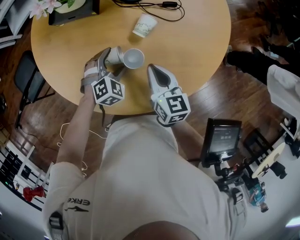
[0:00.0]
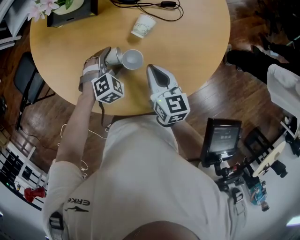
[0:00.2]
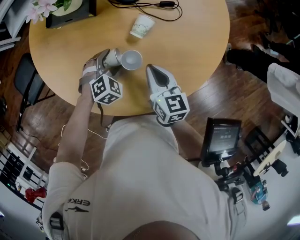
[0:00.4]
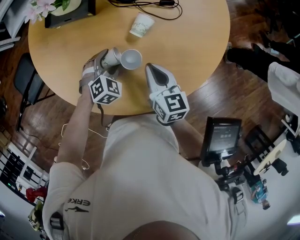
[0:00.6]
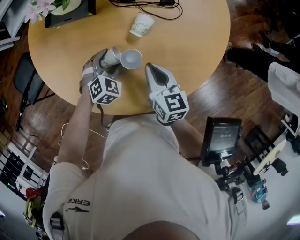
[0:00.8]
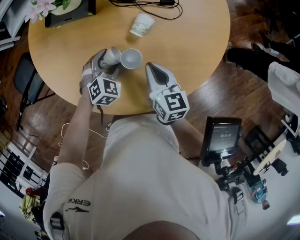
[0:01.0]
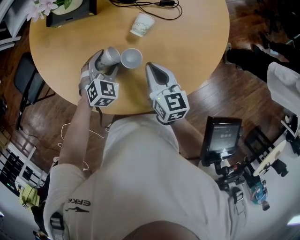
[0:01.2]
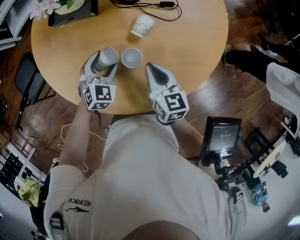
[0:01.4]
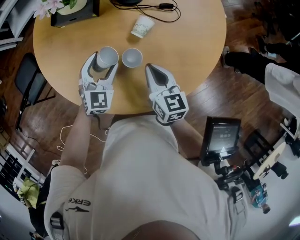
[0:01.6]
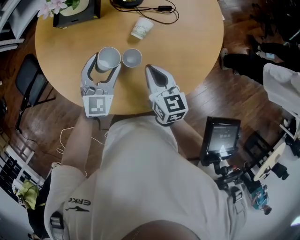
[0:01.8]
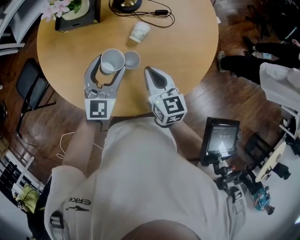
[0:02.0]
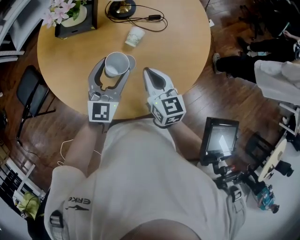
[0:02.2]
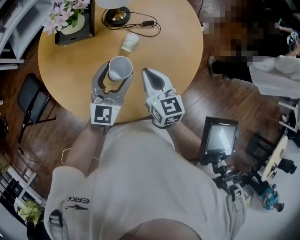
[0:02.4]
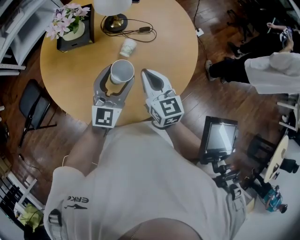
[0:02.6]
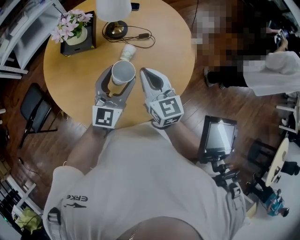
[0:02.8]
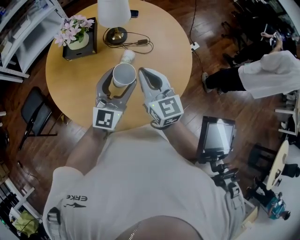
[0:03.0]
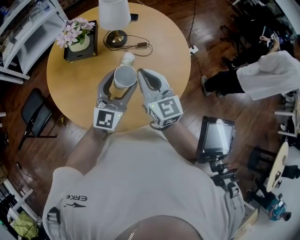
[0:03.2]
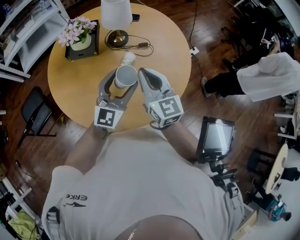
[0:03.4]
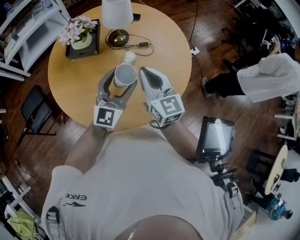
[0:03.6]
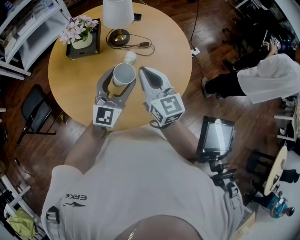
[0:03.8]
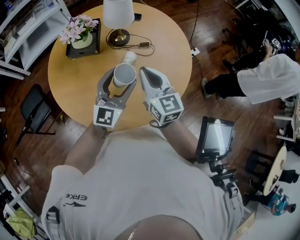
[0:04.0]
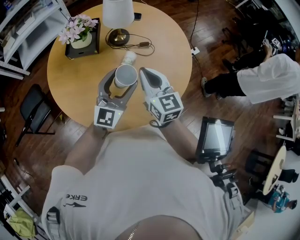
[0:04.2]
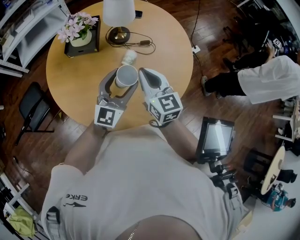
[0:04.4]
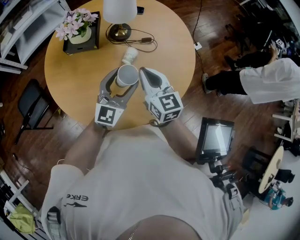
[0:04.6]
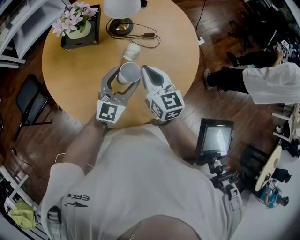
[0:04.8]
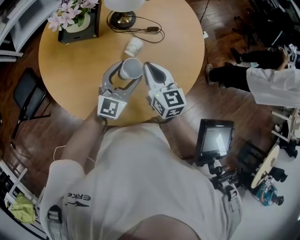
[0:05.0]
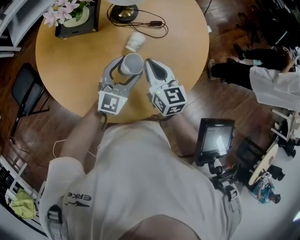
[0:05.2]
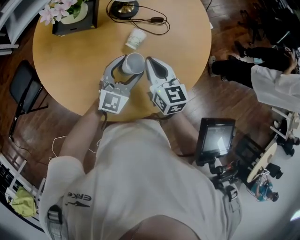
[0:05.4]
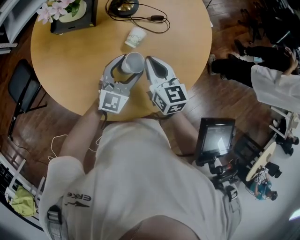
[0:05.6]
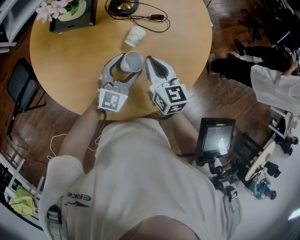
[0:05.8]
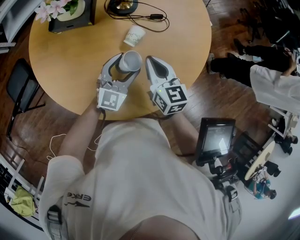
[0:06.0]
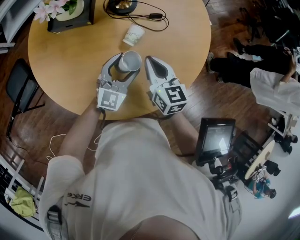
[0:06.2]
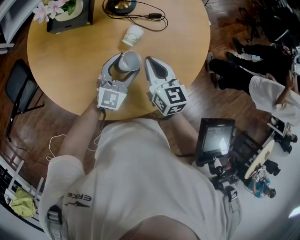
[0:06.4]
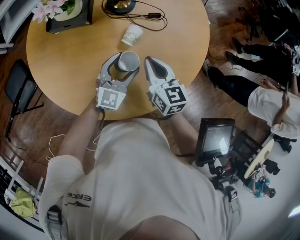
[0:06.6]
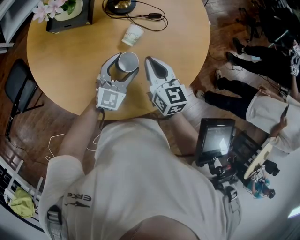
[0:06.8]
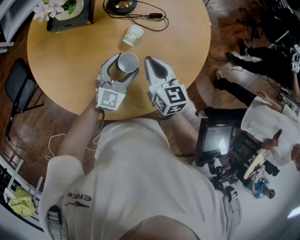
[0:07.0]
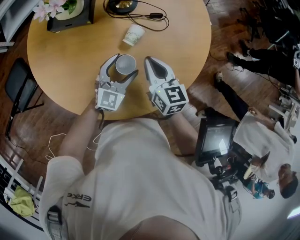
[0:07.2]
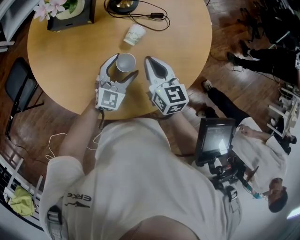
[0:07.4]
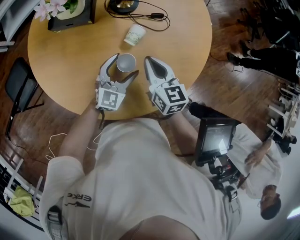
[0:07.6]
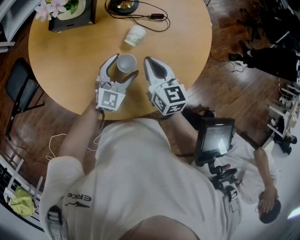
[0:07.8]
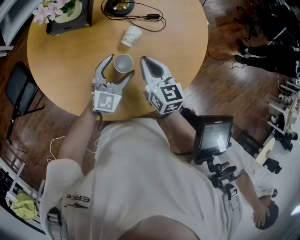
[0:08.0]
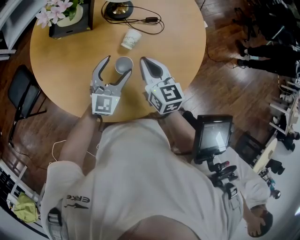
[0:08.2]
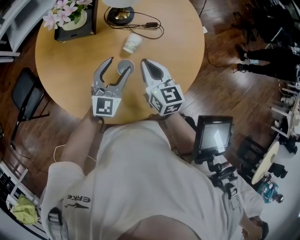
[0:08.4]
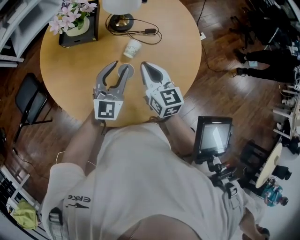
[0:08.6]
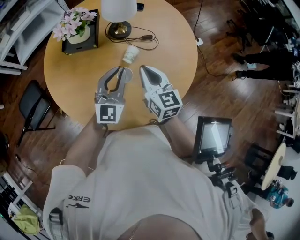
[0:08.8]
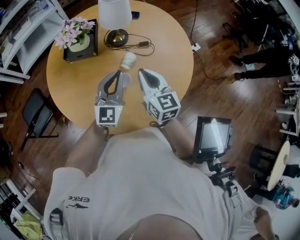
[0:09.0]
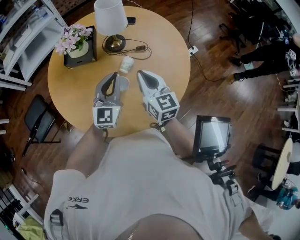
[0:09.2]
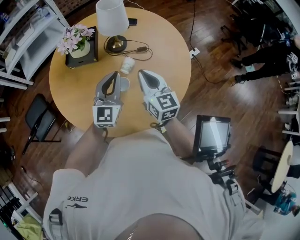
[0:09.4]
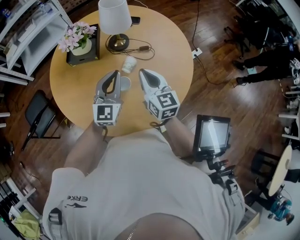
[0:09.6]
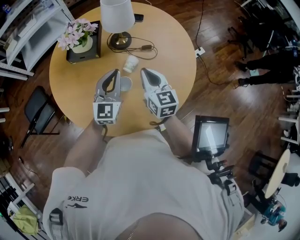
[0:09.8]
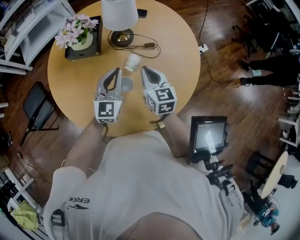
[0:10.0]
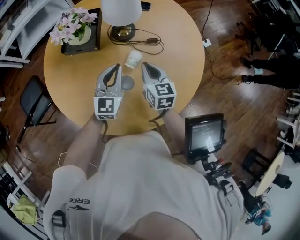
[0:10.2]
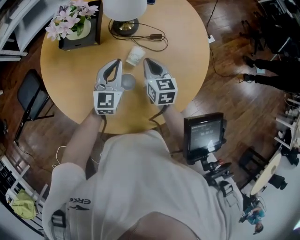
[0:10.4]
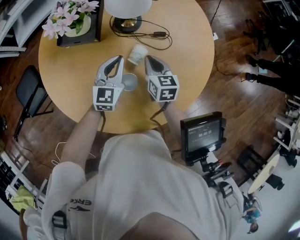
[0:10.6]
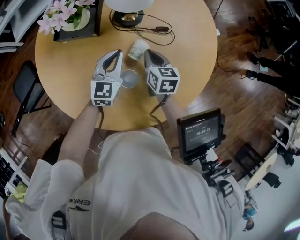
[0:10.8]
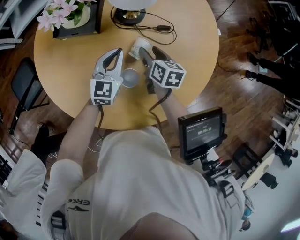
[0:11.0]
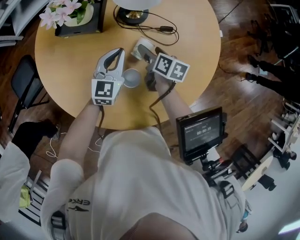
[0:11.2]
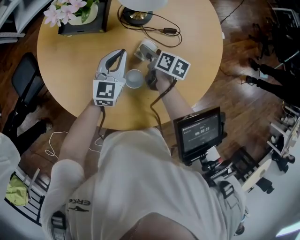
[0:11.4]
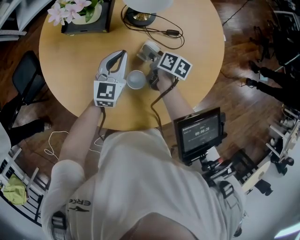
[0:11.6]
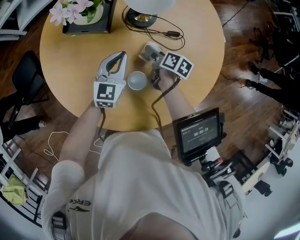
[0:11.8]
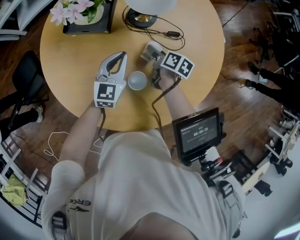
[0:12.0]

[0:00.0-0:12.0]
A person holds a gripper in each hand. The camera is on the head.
0:00.0 to 0:01.6: The left gripper travels upward by roughly 10 cm, and swivels some 40 degrees.
0:01.6 to 0:03.0: The left gripper moves upward and to the right, approximately 20 cm, and tilts its fingers about 30 degrees upward; the right gripper is displaced upward by approximately 20 cm, and turns by approximately 30 degrees.
0:03.0 to 0:04.4: There are only small adjustments of the grippers.
0:04.4 to 0:06.0: The two grippers go some 15 cm downward.
0:06.0 to 0:07.6: There are only small adjustments of the grippers.
0:07.6 to 0:09.0: The right gripper moves upward, about 10 cm. Meanwhile the left gripper is displaced upward by some 15 cm, turns by some 20 degrees, and closes its fingers.
0:09.0 to 0:10.4: Both grippers move downward and forward, roughly 15 cm.
0:10.4 to 0:12.0: The right gripper heads downward and forward, covering approximately 10 cm, rotates around the line of its fingers by about 40 degrees, clockwise from behind, and opens up, while the left gripper shifts by roughly 5 cm.

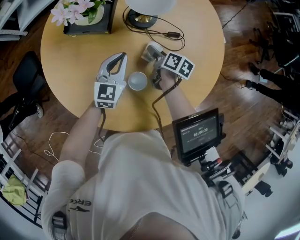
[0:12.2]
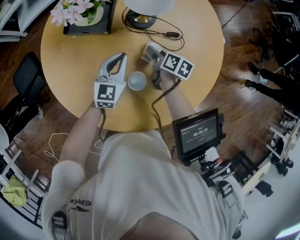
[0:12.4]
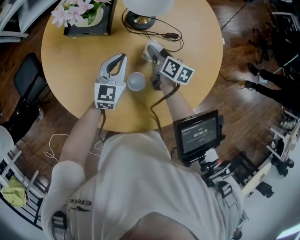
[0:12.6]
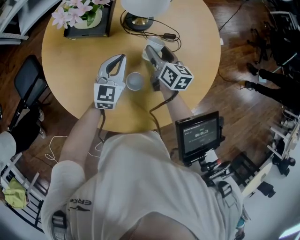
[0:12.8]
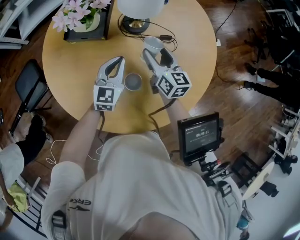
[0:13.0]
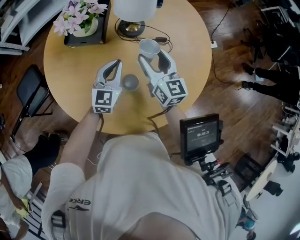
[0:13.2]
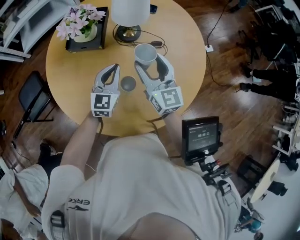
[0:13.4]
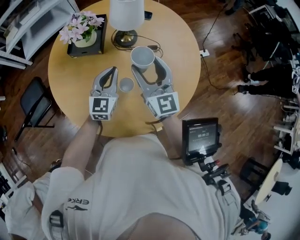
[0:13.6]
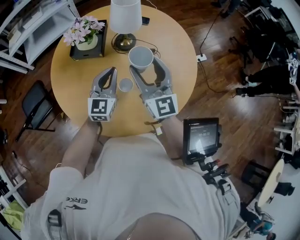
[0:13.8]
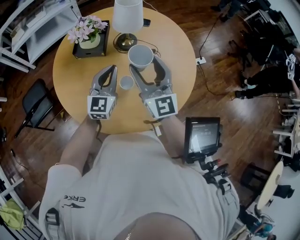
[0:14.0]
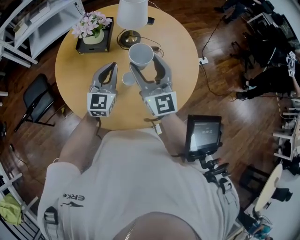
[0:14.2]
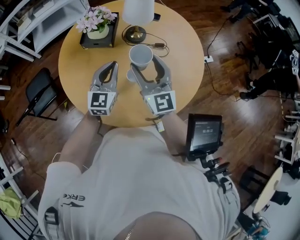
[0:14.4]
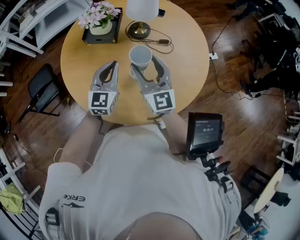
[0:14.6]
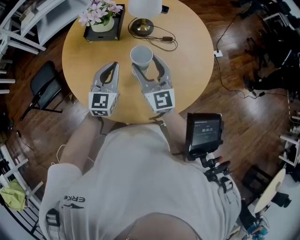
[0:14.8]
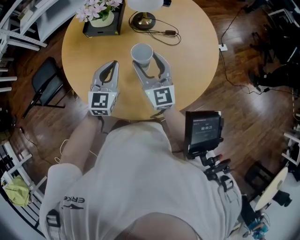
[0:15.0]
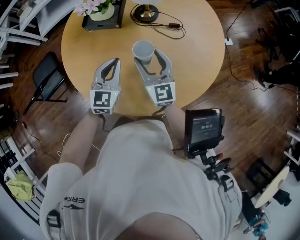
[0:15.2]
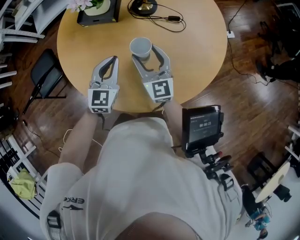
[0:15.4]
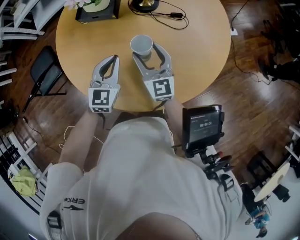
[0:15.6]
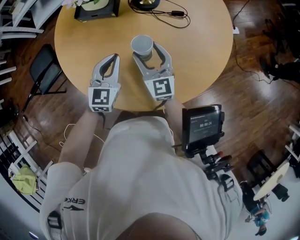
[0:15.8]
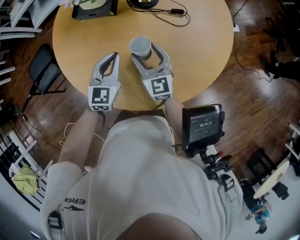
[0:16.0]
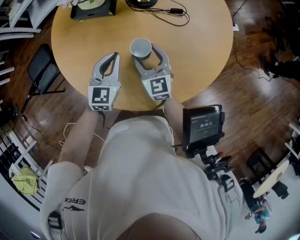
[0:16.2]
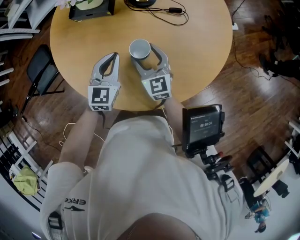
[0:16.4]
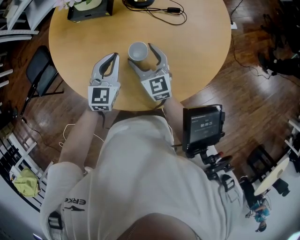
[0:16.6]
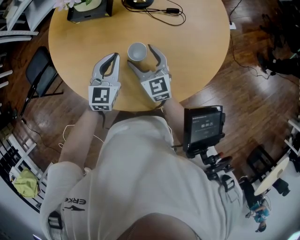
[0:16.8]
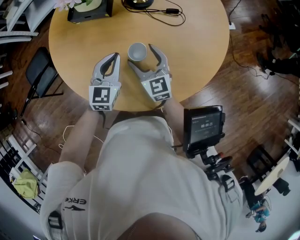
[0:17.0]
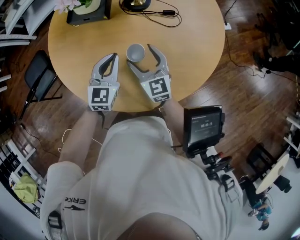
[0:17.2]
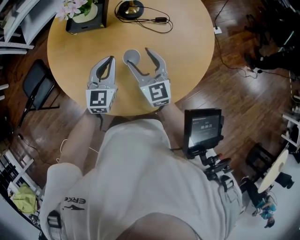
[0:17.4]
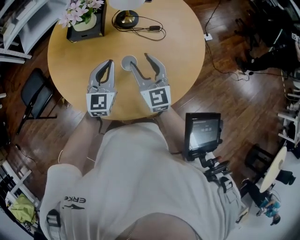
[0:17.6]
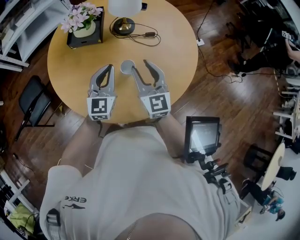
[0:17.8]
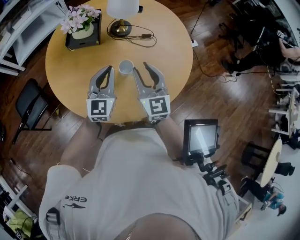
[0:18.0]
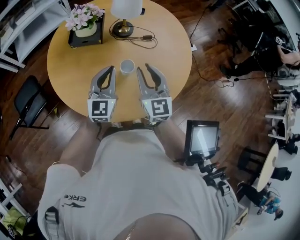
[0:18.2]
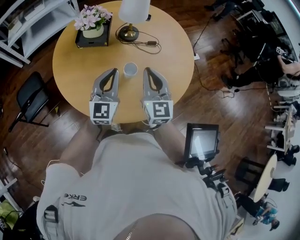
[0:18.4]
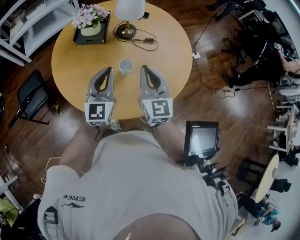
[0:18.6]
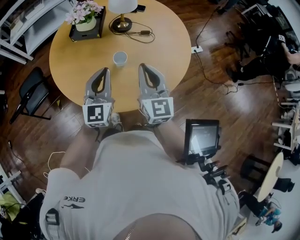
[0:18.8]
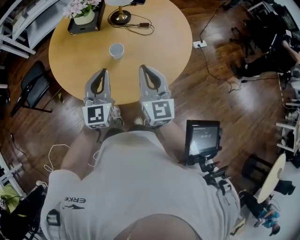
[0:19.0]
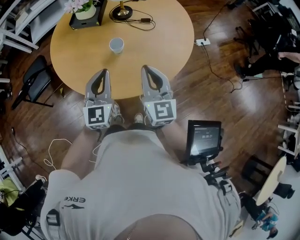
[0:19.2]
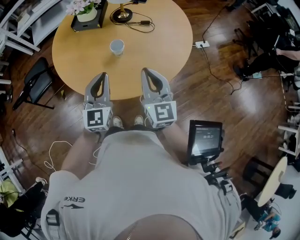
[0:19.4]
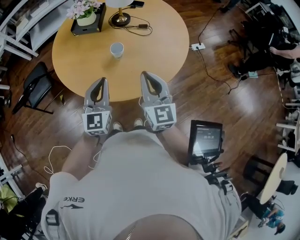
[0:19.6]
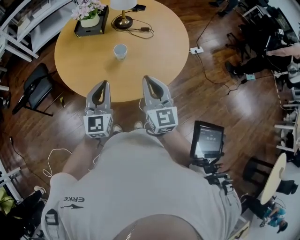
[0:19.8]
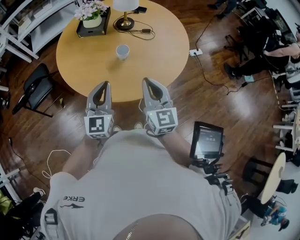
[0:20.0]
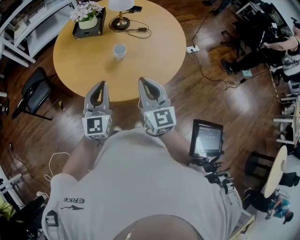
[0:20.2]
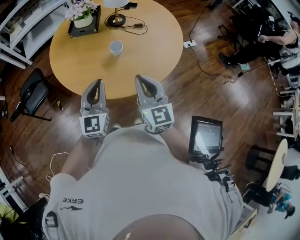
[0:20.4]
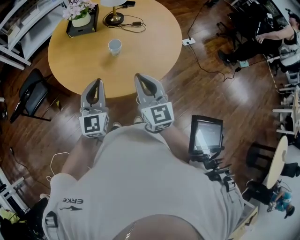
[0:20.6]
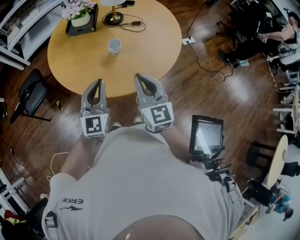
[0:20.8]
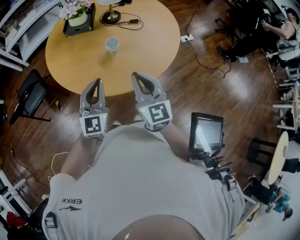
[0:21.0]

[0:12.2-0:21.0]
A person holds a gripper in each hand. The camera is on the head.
0:12.2 to 0:13.6: The right gripper travels upward by about 30 cm, and tilts its fingers approximately 40 degrees upward. The left gripper shifts approximately 10 cm upward.
0:13.6 to 0:15.2: The left gripper is displaced backward by about 5 cm. The right gripper heads downward and to the left, covering roughly 10 cm.
0:15.2 to 0:16.6: The left gripper shifts about 5 cm downward. The right gripper heads downward, covering roughly 10 cm.
0:16.6 to 0:18.0: The left gripper moves upward, approximately 10 cm, while the right gripper shifts roughly 15 cm upward, rotates about 20 degrees, and closes its fingers.
0:18.0 to 0:19.6: The left gripper is displaced backward by approximately 20 cm, while the right gripper is displaced backward and to the right by about 15 cm, and closes.
0:19.6 to 0:21.0: The right gripper moves approximately 5 cm.

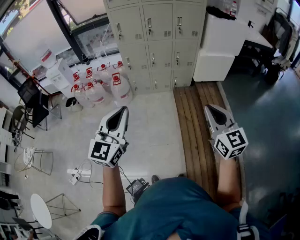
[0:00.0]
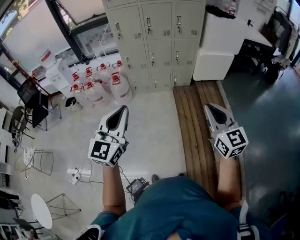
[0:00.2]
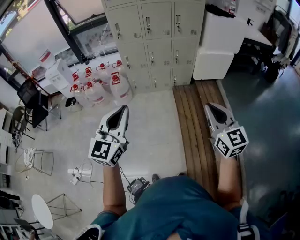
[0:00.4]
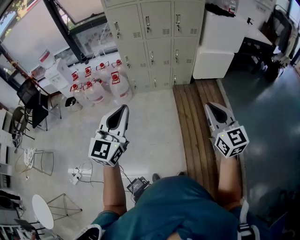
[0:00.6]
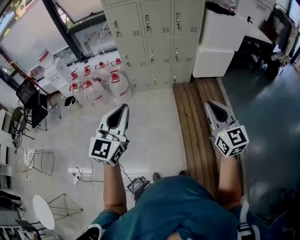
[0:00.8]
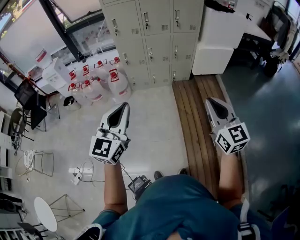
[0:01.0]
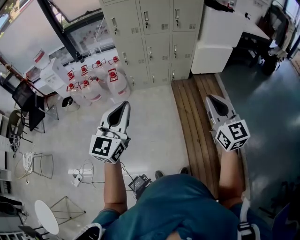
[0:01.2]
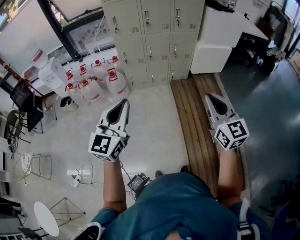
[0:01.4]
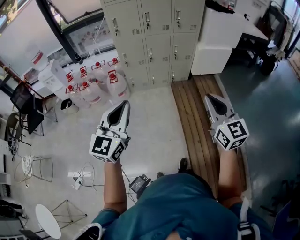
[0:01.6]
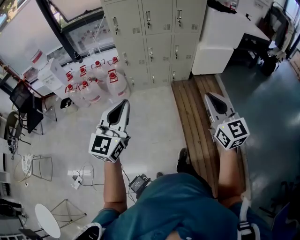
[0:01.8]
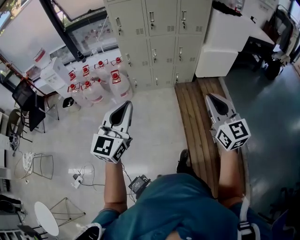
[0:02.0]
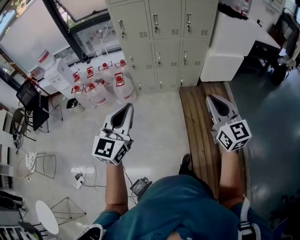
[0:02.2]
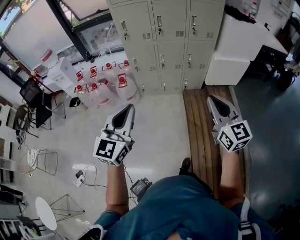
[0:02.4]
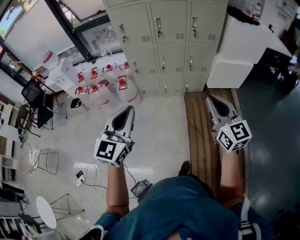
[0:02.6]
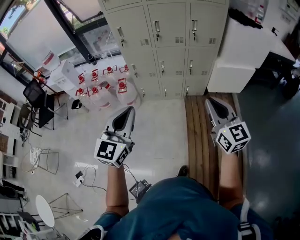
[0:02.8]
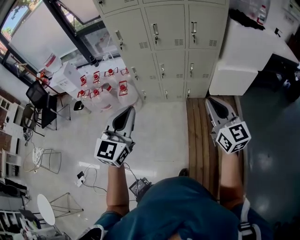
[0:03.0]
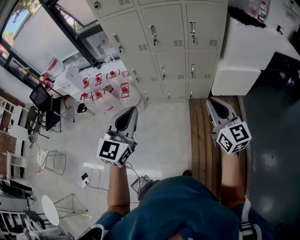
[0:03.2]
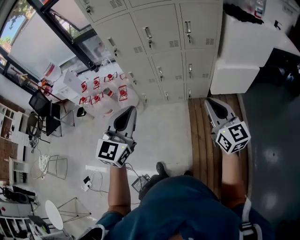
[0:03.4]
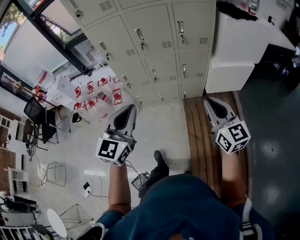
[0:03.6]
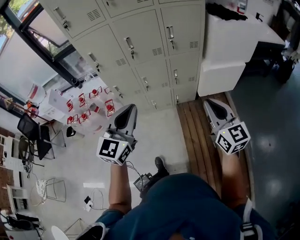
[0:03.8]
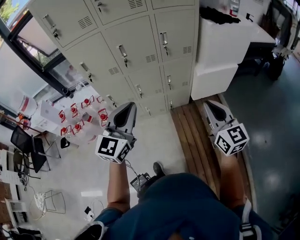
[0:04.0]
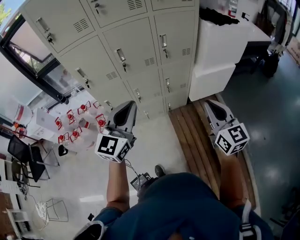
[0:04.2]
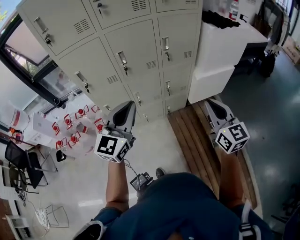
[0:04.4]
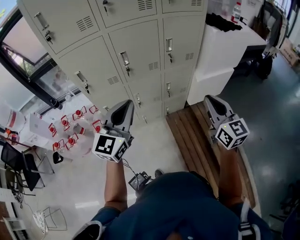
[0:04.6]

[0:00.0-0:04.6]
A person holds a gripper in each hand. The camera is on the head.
0:00.0 to 0:01.6: The grippers both shift to the left by some 10 cm.
0:01.6 to 0:03.0: The two grippers go approximately 35 cm forward and to the right.
0:03.0 to 0:04.6: The grippers both shift forward by some 30 cm. The right gripper turns by approximately 20 degrees, while the left gripper swivels about 20 degrees.
